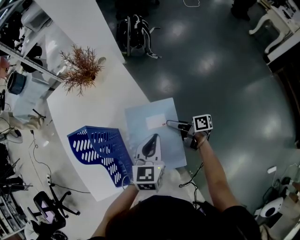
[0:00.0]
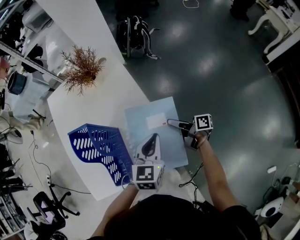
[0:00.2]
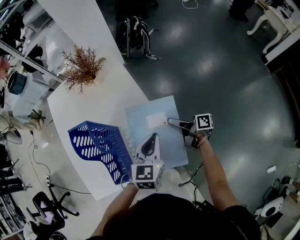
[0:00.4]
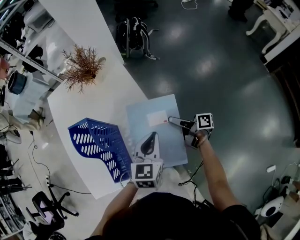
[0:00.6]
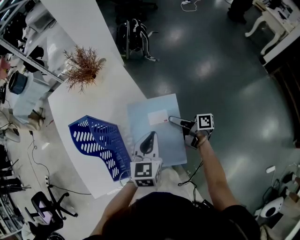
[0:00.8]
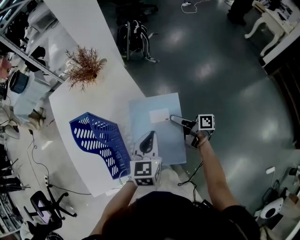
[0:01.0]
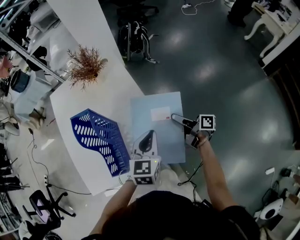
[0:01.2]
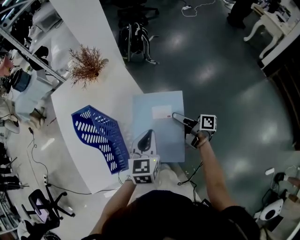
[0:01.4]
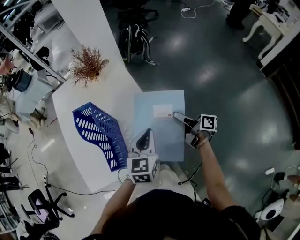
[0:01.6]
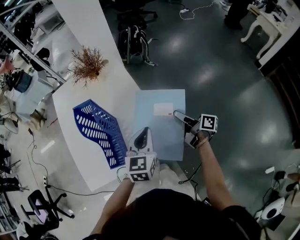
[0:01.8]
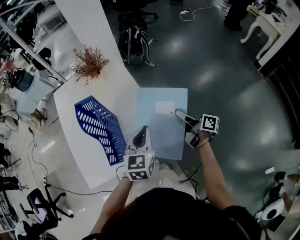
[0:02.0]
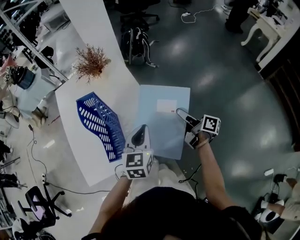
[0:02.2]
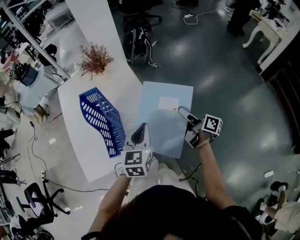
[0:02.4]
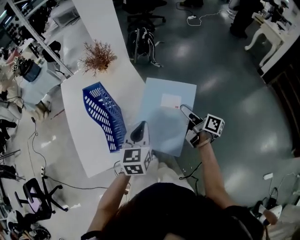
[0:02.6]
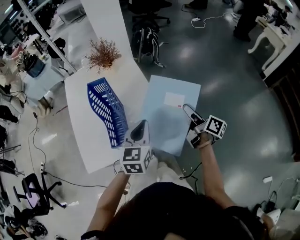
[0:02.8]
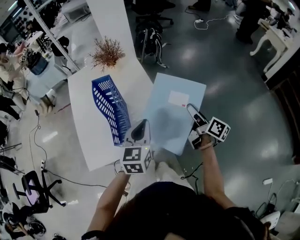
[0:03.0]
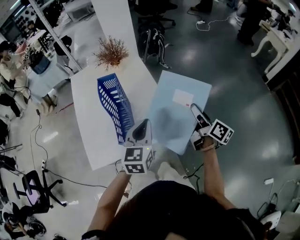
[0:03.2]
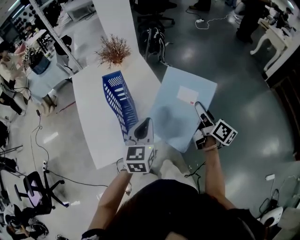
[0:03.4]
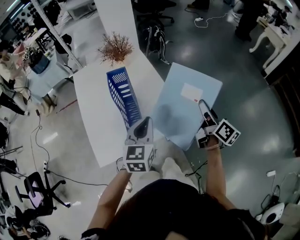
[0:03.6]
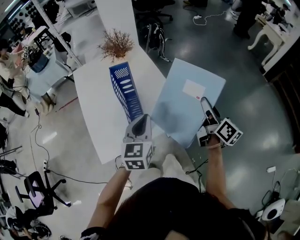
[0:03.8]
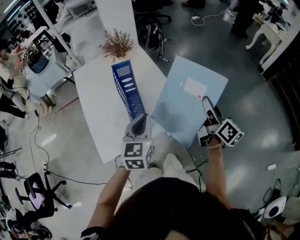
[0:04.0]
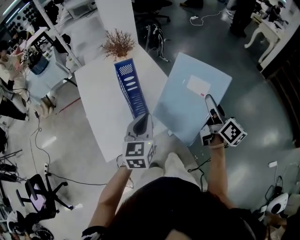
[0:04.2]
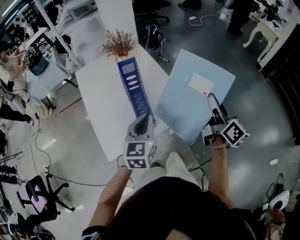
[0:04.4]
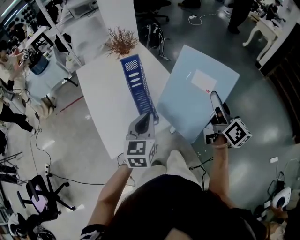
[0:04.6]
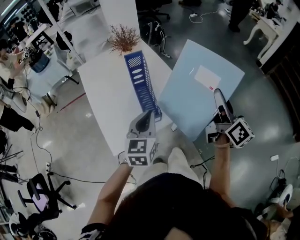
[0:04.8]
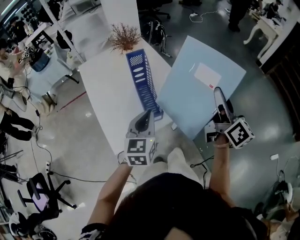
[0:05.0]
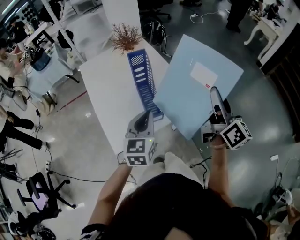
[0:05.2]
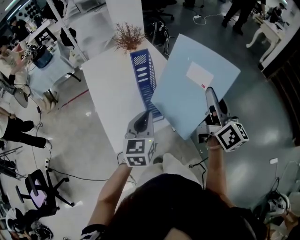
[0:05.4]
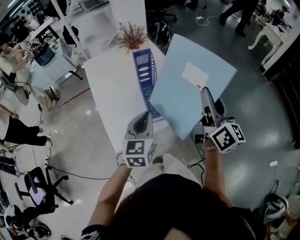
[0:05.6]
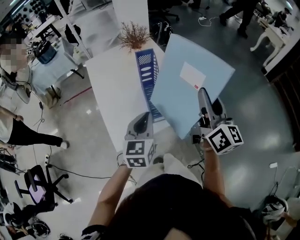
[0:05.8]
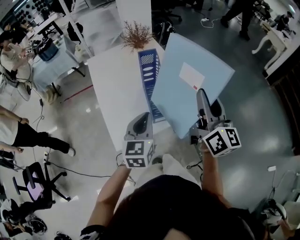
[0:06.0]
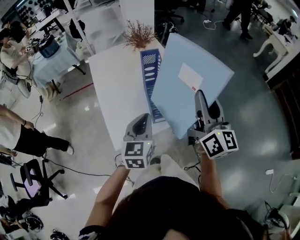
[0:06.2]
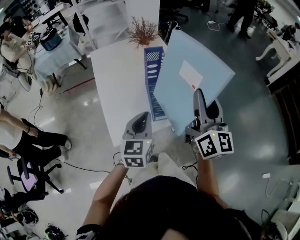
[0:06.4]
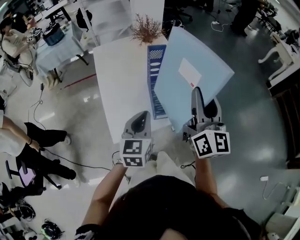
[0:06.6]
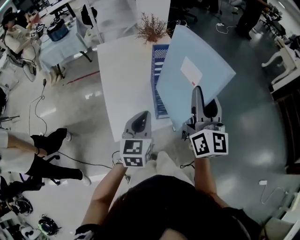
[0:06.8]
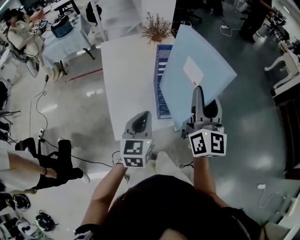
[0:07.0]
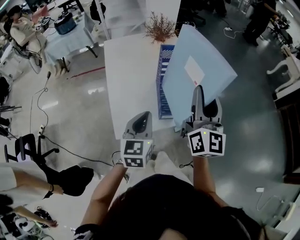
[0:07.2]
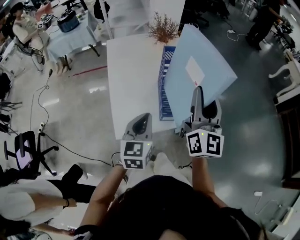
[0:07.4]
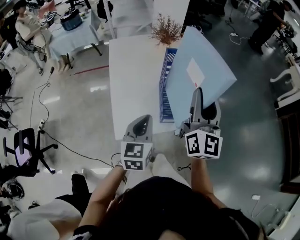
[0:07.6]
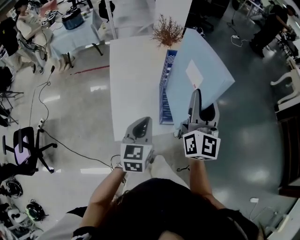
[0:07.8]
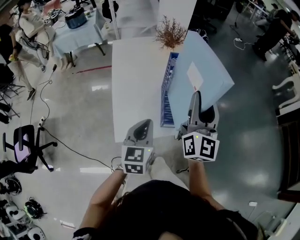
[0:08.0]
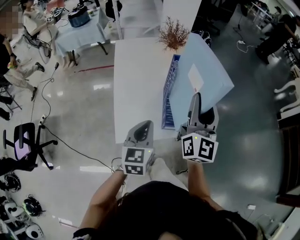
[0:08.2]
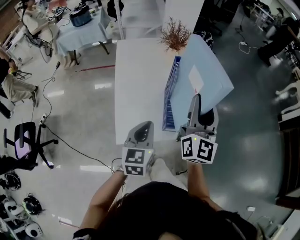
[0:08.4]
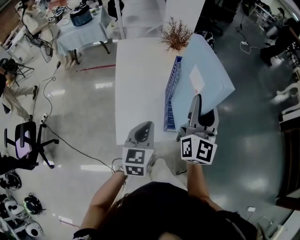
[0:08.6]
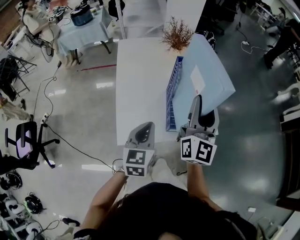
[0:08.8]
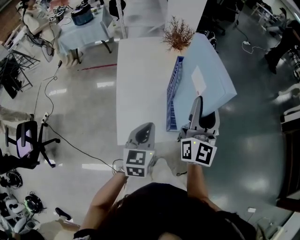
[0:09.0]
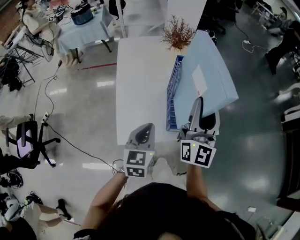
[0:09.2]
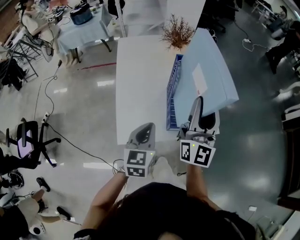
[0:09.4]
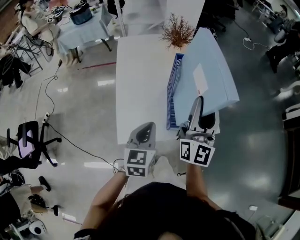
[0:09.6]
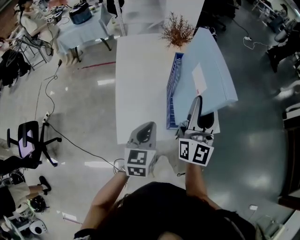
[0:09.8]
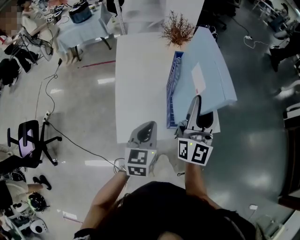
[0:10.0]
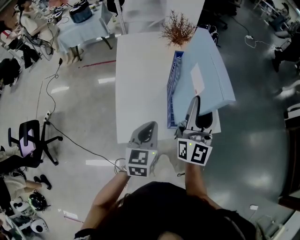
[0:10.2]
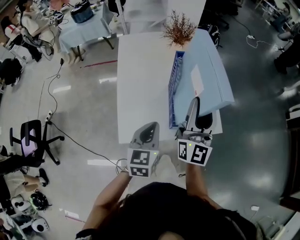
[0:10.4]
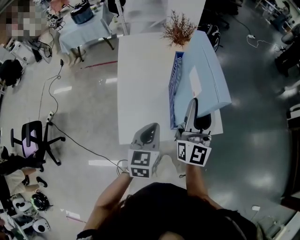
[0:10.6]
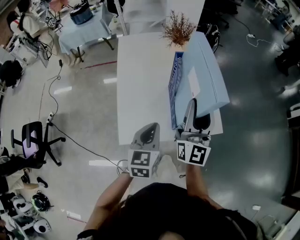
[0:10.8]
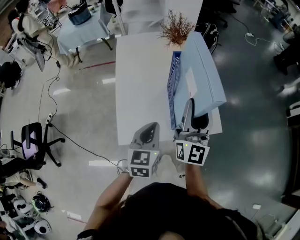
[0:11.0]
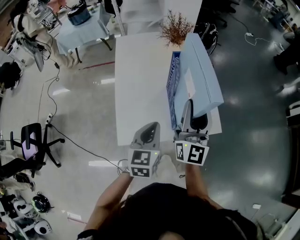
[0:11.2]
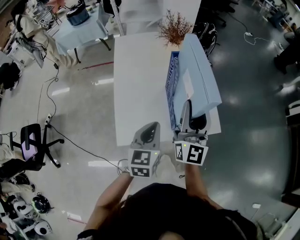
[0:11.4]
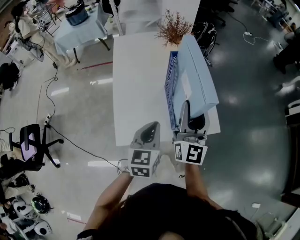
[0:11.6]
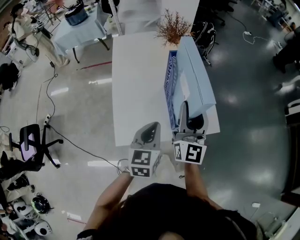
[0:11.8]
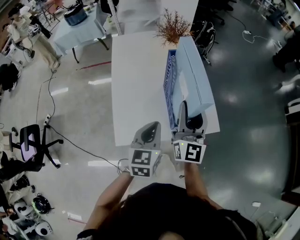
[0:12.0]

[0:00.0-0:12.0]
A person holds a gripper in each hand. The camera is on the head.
0:00.0 to 0:01.6: The left gripper shifts by approximately 5 cm; the right gripper goes about 10 cm upward.
0:01.6 to 0:03.0: The left gripper heads backward, upward and to the left, covering some 10 cm; the right gripper is displaced upward and backward by approximately 15 cm, and rotates roughly 20 degrees.
0:03.0 to 0:04.4: The right gripper shifts some 20 cm upward, backward and to the left, and changes its angle by approximately 30 degrees, while the left gripper is displaced to the left and backward by approximately 15 cm.
0:04.4 to 0:06.0: The right gripper goes about 15 cm to the left and upward; the left gripper heads to the left, covering roughly 5 cm.
0:06.0 to 0:07.6: The left gripper shifts by about 5 cm. Meanwhile the right gripper heads to the left, covering roughly 10 cm.
0:07.6 to 0:09.0: The right gripper shifts by some 5 cm.
0:09.0 to 0:10.4: There are only small adjustments of the grippers.
0:10.4 to 0:12.0: The right gripper heads downward, covering roughly 5 cm.

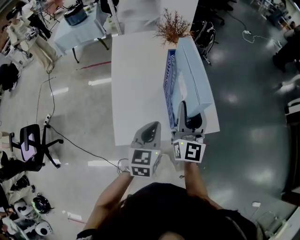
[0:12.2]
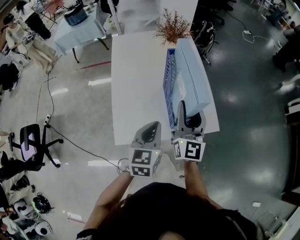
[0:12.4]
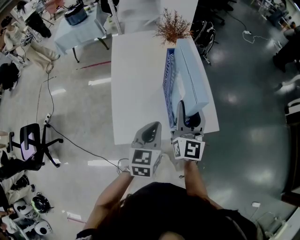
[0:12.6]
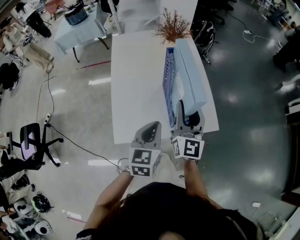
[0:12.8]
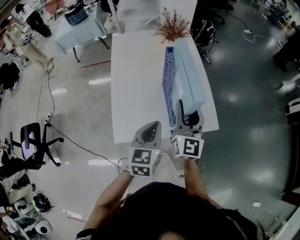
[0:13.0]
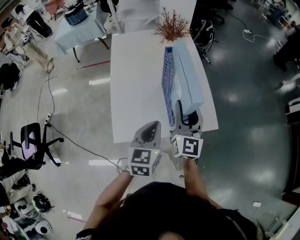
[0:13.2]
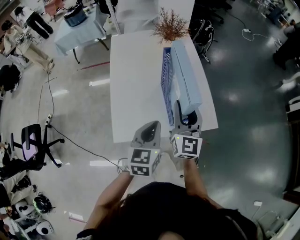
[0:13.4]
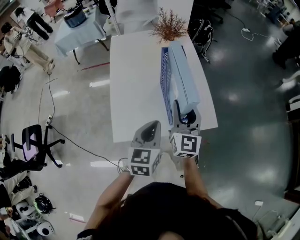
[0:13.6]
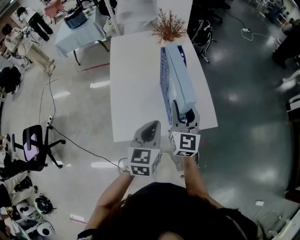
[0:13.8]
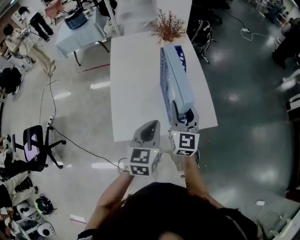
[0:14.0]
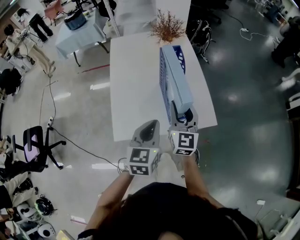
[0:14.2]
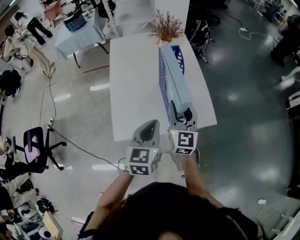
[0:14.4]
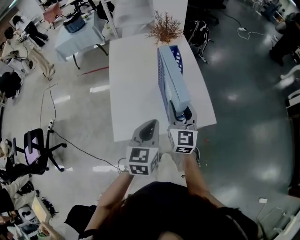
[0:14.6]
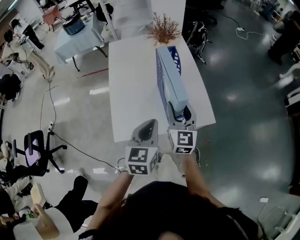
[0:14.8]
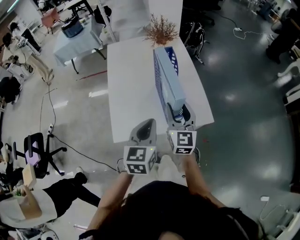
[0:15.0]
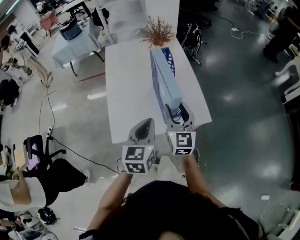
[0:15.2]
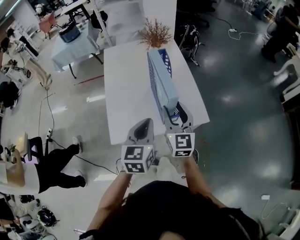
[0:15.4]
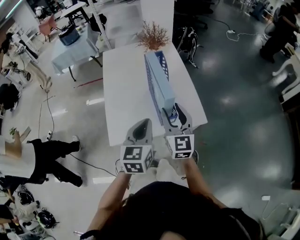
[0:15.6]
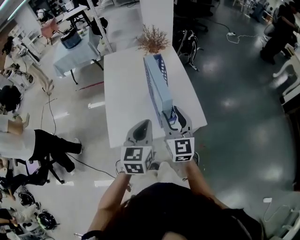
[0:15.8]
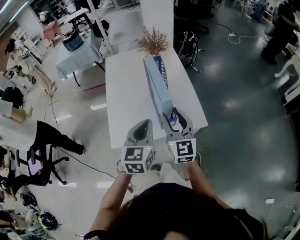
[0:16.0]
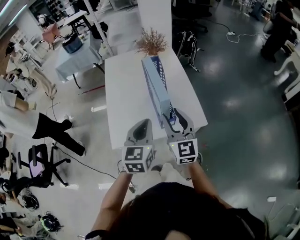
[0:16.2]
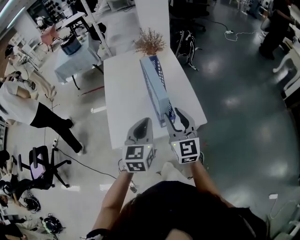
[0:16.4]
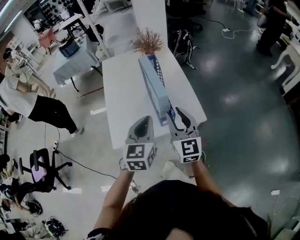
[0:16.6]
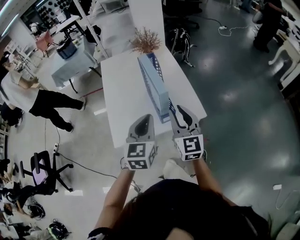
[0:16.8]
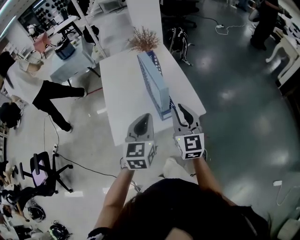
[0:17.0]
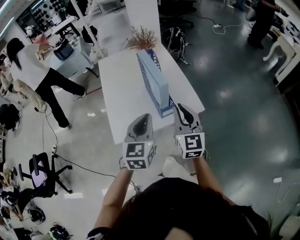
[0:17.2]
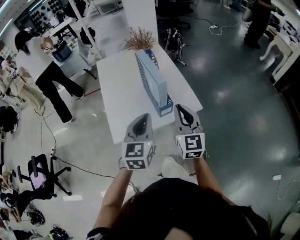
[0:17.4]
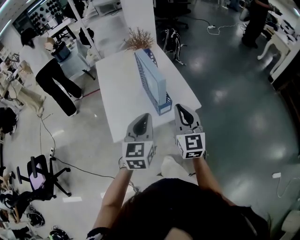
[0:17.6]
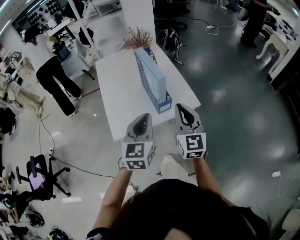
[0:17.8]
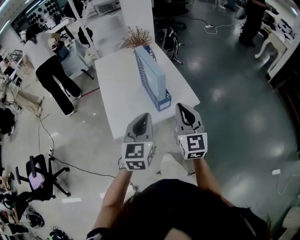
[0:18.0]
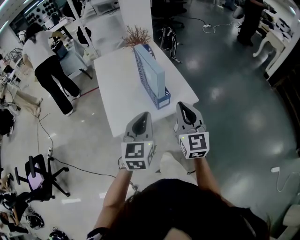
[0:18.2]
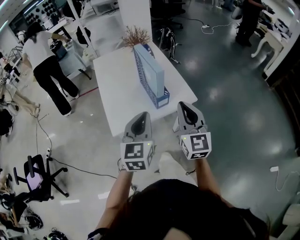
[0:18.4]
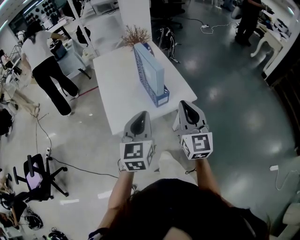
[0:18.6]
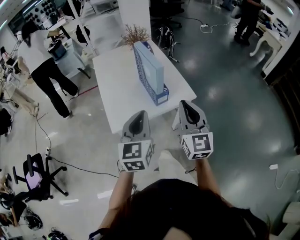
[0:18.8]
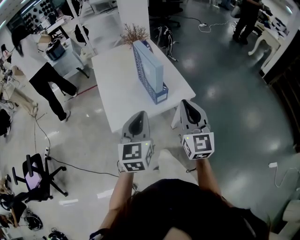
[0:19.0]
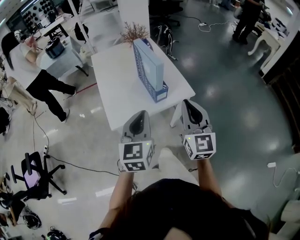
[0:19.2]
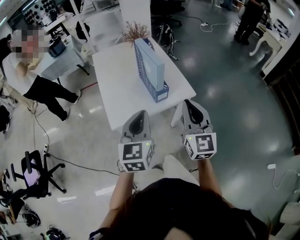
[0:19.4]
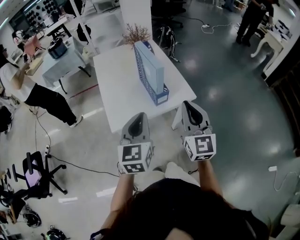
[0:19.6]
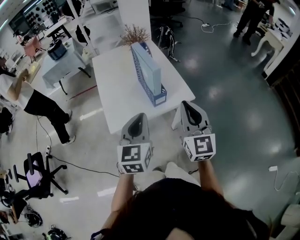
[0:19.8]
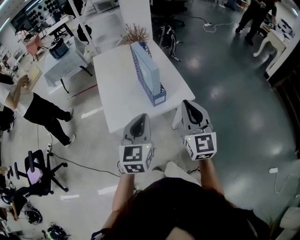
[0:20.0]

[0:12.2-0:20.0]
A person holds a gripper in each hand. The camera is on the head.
0:12.2 to 0:13.8: The grippers stay close to where they were, moving slightly.
0:13.8 to 0:15.4: The grippers make only small movements.
0:15.4 to 0:16.8: The right gripper shifts some 5 cm backward.
0:16.8 to 0:18.4: The right gripper is displaced backward and upward by about 15 cm, and closes. The left gripper shifts about 10 cm backward.
0:18.4 to 0:20.0: There are only small adjustments of the grippers.

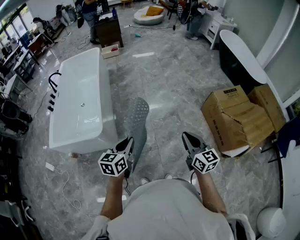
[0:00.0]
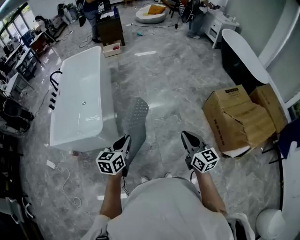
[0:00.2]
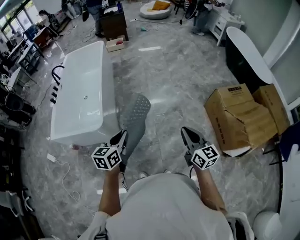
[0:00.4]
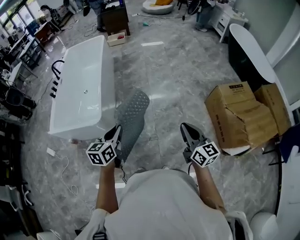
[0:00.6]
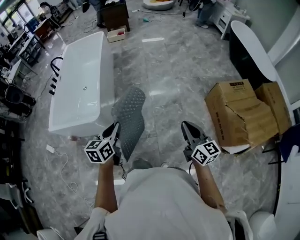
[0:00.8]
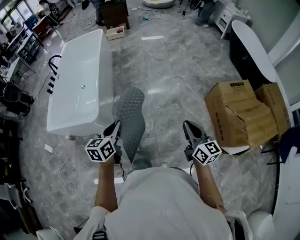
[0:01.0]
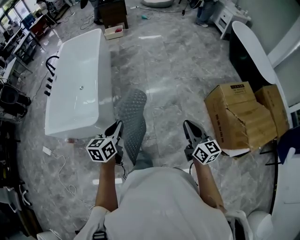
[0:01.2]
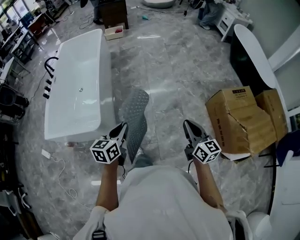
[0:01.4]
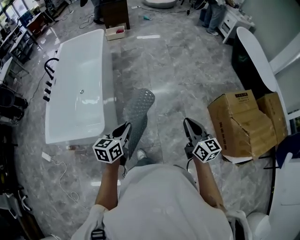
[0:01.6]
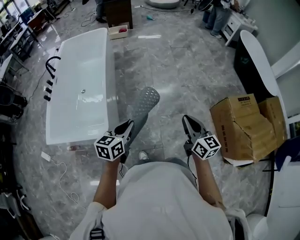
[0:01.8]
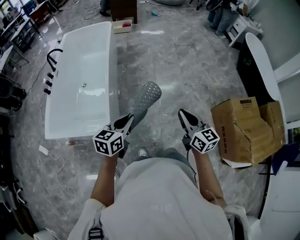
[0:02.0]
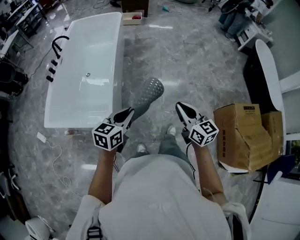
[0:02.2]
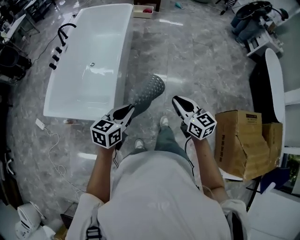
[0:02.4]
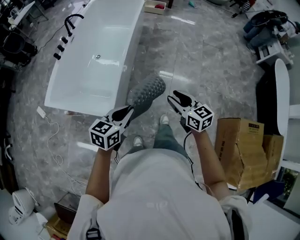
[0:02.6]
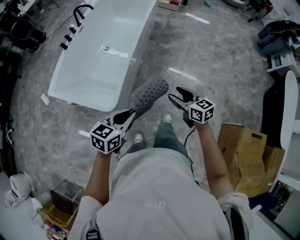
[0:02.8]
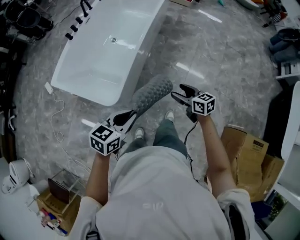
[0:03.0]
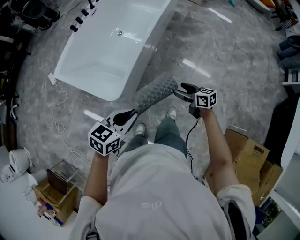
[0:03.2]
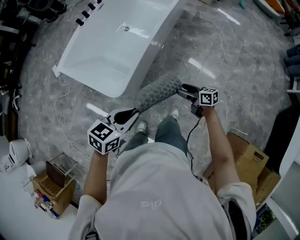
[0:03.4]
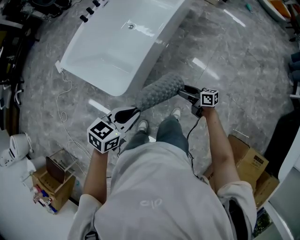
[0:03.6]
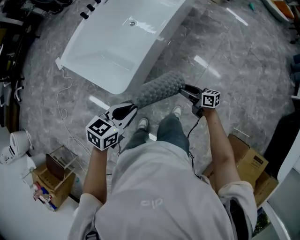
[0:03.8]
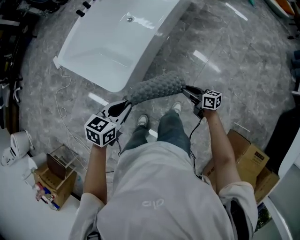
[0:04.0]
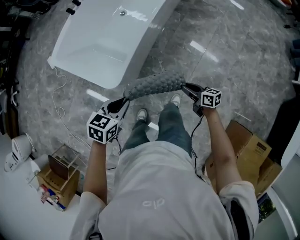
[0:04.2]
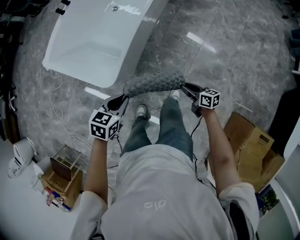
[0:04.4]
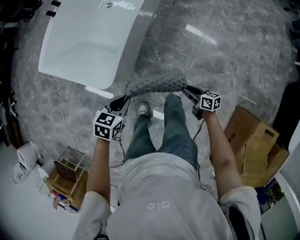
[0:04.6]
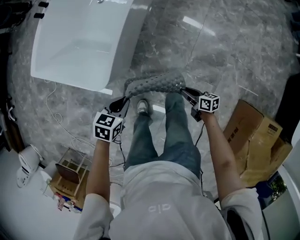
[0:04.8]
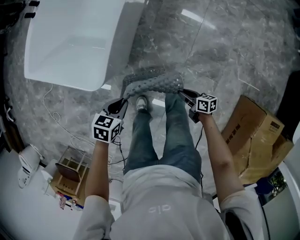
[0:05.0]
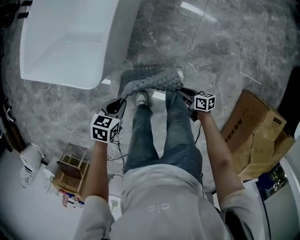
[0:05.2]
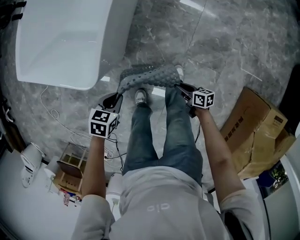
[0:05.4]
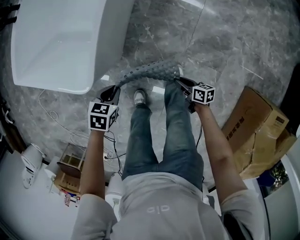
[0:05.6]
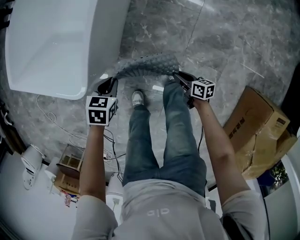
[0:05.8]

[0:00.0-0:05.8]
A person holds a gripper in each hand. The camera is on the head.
0:00.0 to 0:01.4: The grippers both shift forward by some 15 cm.
0:01.4 to 0:02.8: The right gripper shifts by roughly 50 cm, rotates about 50 degrees, and opens its fingers. Meanwhile the left gripper moves some 25 cm.
0:02.8 to 0:04.4: The left gripper shifts roughly 15 cm downward, and rotates approximately 20 degrees. Meanwhile the right gripper heads downward, covering approximately 25 cm, swivels approximately 30 degrees, and closes up.
0:04.4 to 0:05.8: The two grippers go approximately 30 cm downward.
